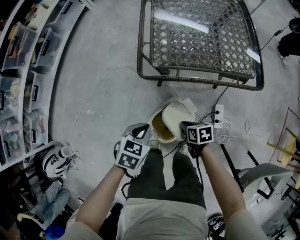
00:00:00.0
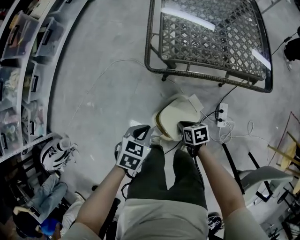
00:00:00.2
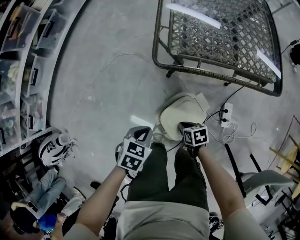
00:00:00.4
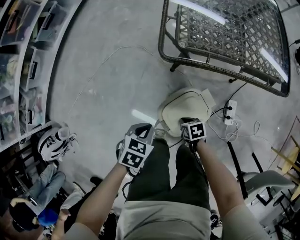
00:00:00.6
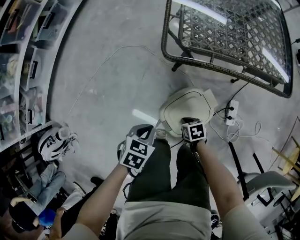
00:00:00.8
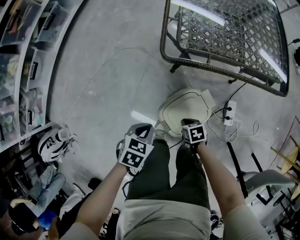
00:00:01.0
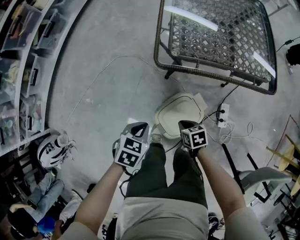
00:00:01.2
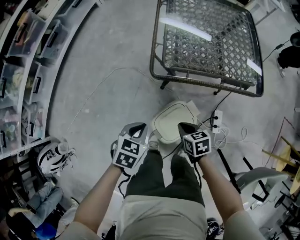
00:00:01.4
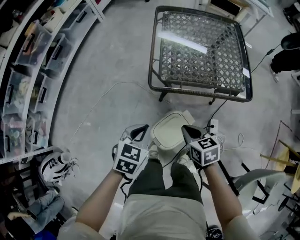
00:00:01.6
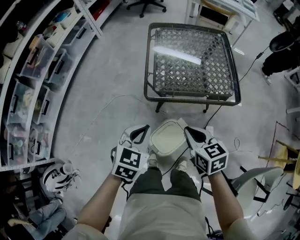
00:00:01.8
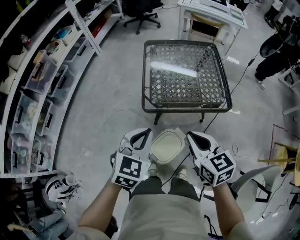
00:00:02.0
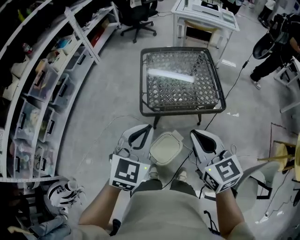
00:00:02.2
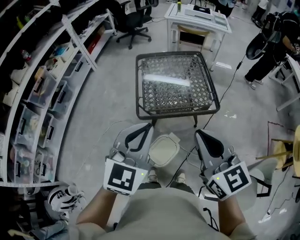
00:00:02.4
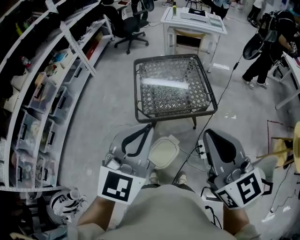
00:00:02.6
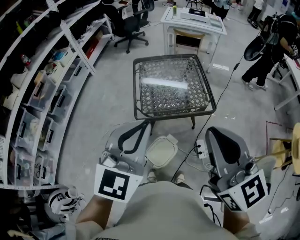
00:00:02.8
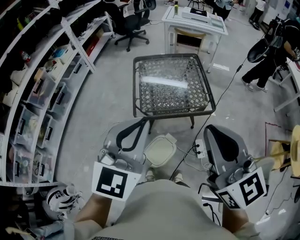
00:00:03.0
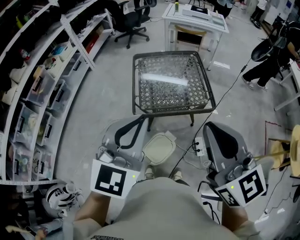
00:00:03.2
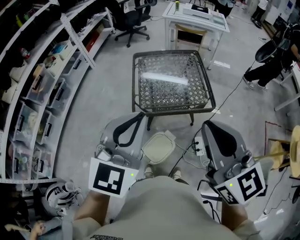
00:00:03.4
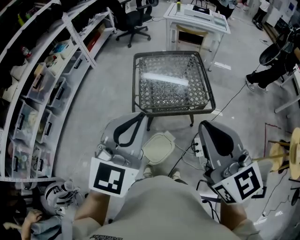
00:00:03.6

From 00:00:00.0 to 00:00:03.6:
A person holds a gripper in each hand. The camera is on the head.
From 00:00:00.0 to 00:00:01.8: The grippers both shift upward by about 25 cm. The left gripper rotates some 20 degrees; the right gripper turns by approximately 40 degrees.
From 00:00:01.8 to 00:00:03.6: The two grippers go roughly 35 cm upward. The left gripper angles its fingers upward, by roughly 30 degrees. The right gripper tips its fingers upward by approximately 30 degrees.

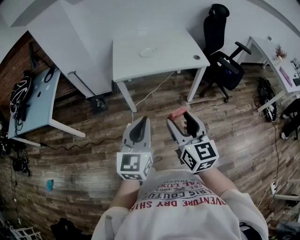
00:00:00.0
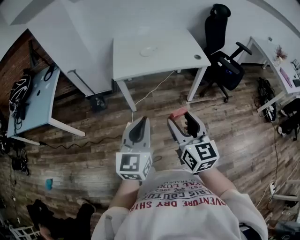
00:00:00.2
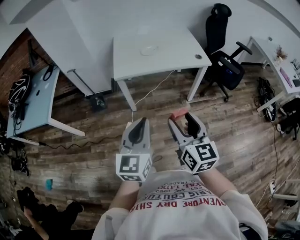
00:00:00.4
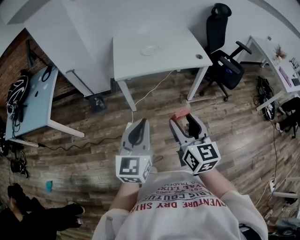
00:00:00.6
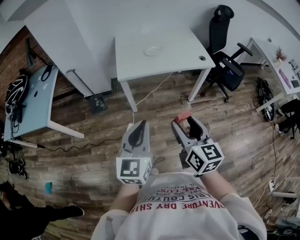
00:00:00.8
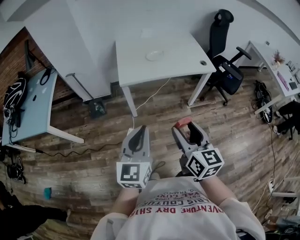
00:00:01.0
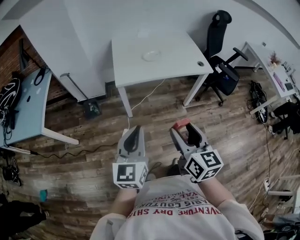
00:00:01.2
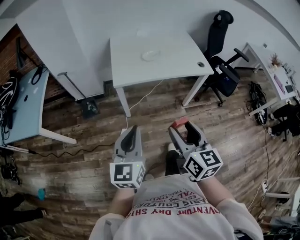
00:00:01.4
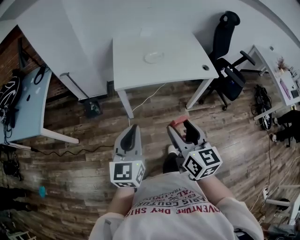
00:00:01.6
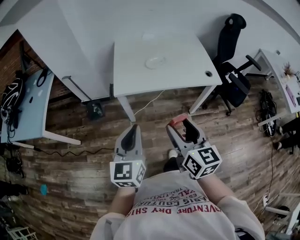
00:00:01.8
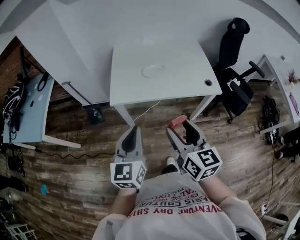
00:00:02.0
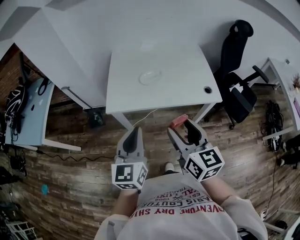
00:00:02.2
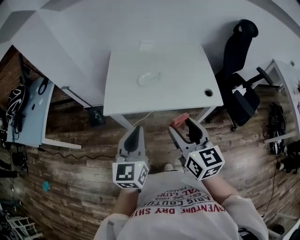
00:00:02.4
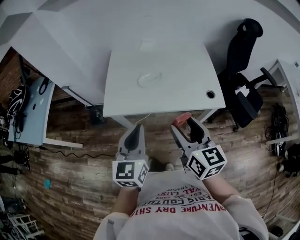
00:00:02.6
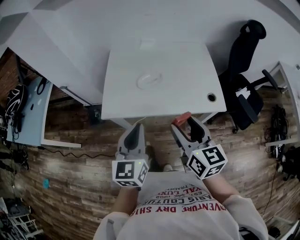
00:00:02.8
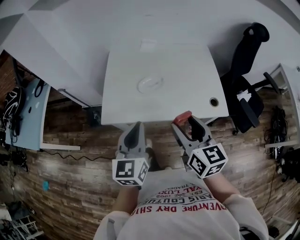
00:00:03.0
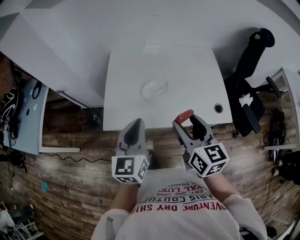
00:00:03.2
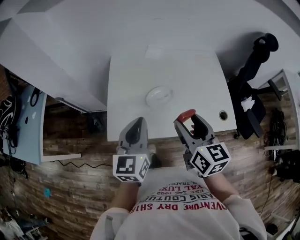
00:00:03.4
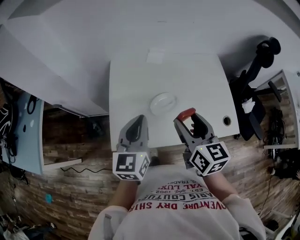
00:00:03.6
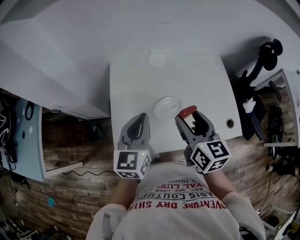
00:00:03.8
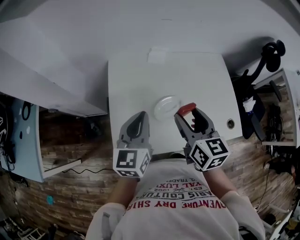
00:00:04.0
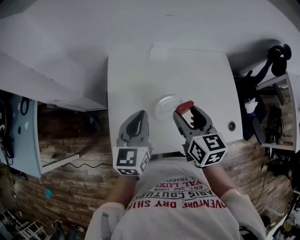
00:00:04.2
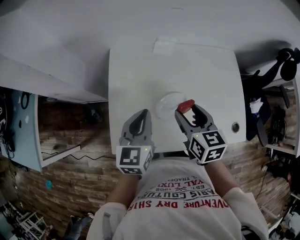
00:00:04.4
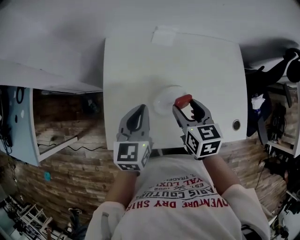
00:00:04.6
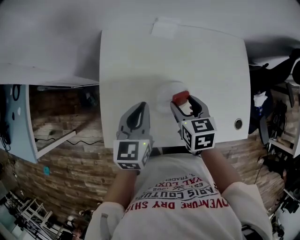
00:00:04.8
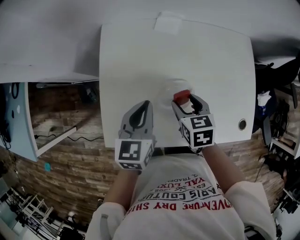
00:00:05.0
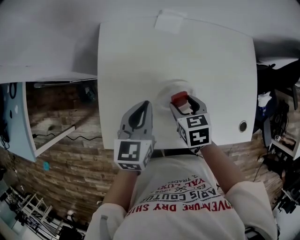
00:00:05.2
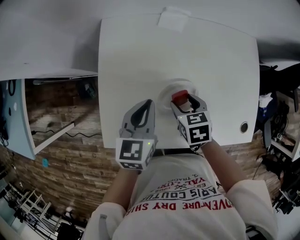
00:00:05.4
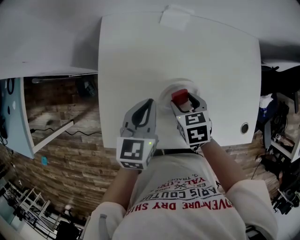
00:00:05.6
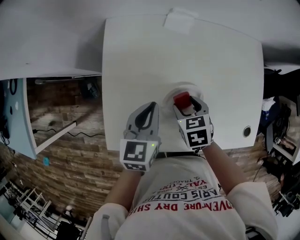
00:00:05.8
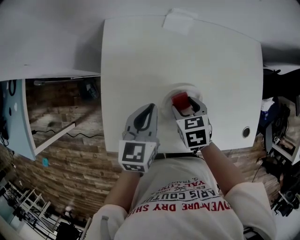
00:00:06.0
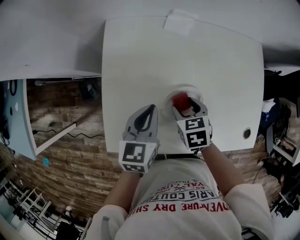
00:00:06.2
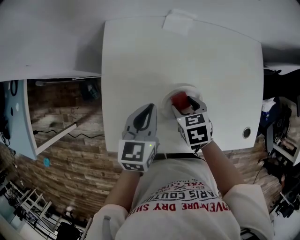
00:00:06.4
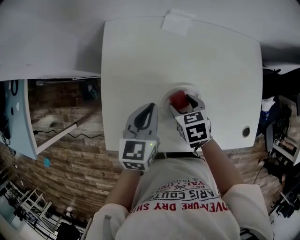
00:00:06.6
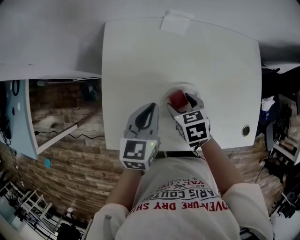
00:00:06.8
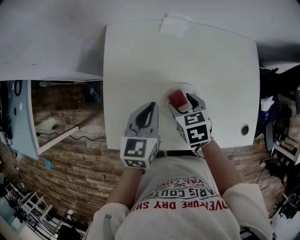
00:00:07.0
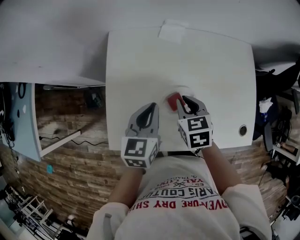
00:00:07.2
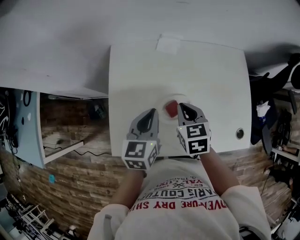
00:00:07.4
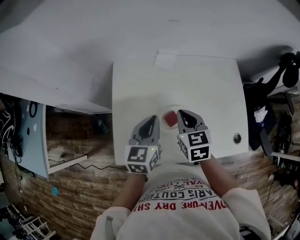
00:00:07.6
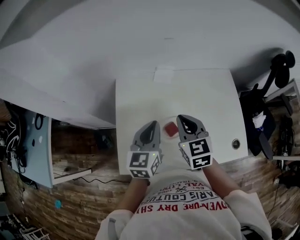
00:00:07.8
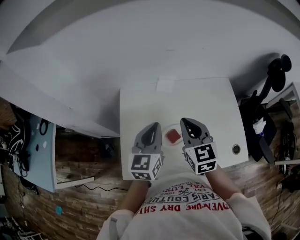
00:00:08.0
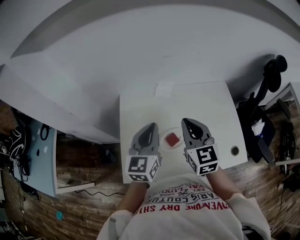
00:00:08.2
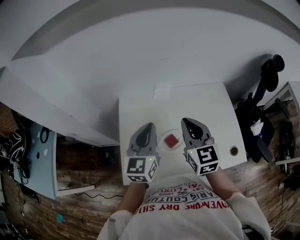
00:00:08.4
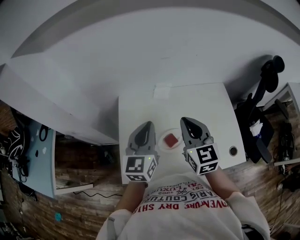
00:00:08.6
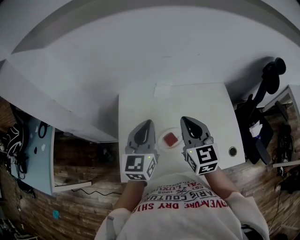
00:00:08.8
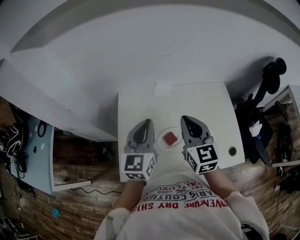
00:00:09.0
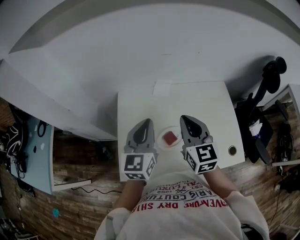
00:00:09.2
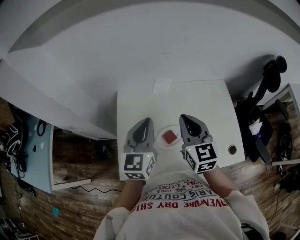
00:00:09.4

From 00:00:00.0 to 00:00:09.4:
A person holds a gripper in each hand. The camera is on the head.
From 00:00:00.0 to 00:00:01.6: The two grippers go roughly 15 cm forward and to the left.
From 00:00:01.6 to 00:00:03.2: The two grippers go some 35 cm forward and to the right.
From 00:00:03.2 to 00:00:04.8: Both grippers move forward and downward, approximately 30 cm. The right gripper points its fingers about 30 degrees further downward.
From 00:00:04.8 to 00:00:06.2: The right gripper moves downward, approximately 10 cm; the left gripper goes about 5 cm downward.
From 00:00:06.2 to 00:00:07.8: The right gripper travels upward by approximately 20 cm, tilts its fingers roughly 30 degrees upward, and closes up, while the left gripper travels upward by approximately 15 cm.
From 00:00:07.8 to 00:00:09.4: Both grippers travel together upward, about 10 cm.

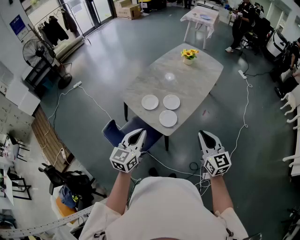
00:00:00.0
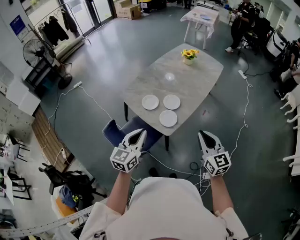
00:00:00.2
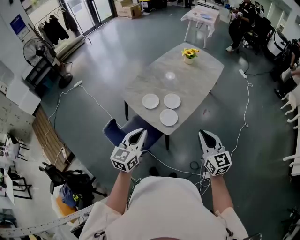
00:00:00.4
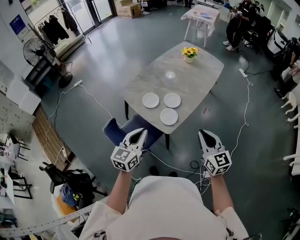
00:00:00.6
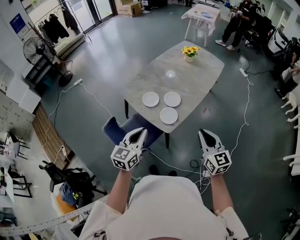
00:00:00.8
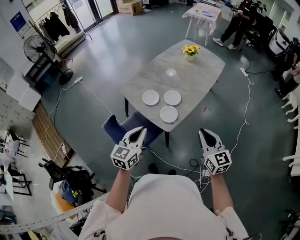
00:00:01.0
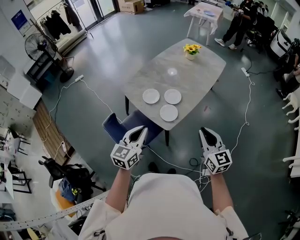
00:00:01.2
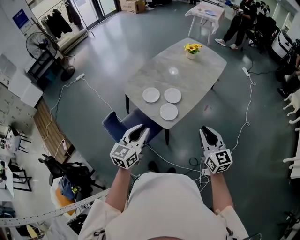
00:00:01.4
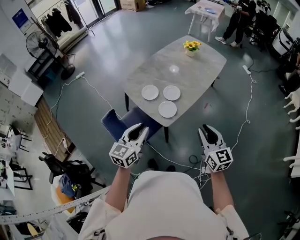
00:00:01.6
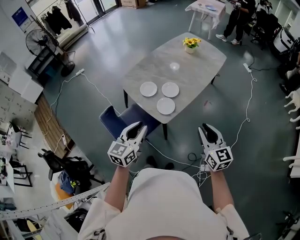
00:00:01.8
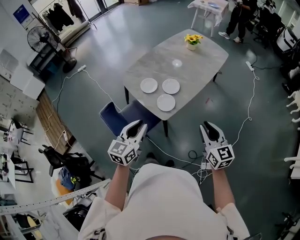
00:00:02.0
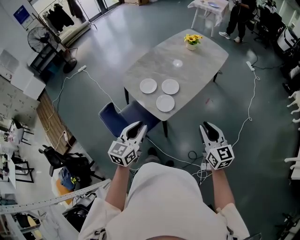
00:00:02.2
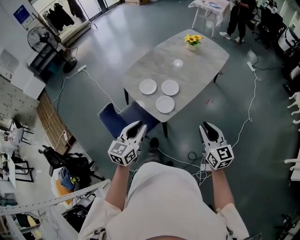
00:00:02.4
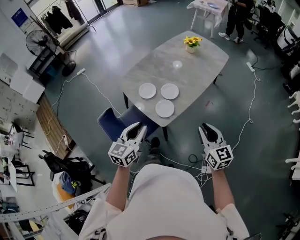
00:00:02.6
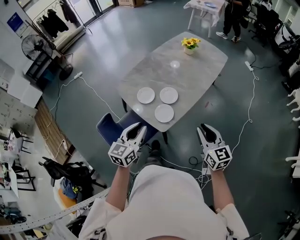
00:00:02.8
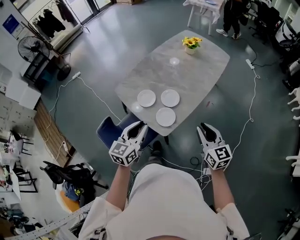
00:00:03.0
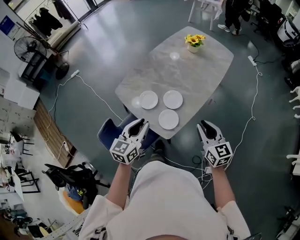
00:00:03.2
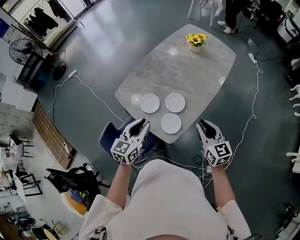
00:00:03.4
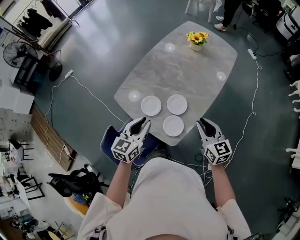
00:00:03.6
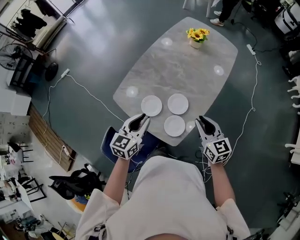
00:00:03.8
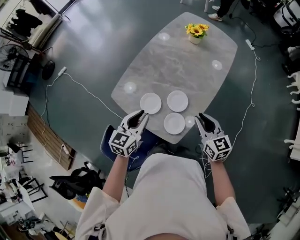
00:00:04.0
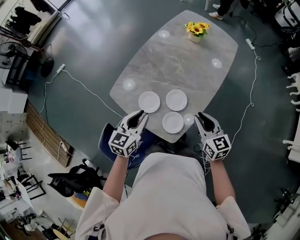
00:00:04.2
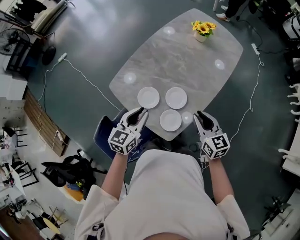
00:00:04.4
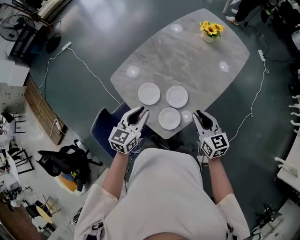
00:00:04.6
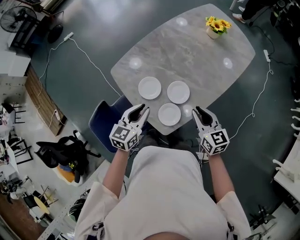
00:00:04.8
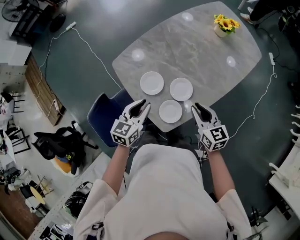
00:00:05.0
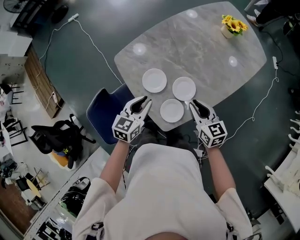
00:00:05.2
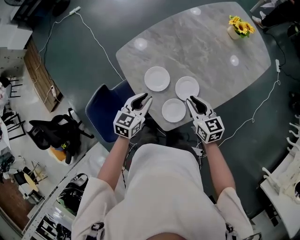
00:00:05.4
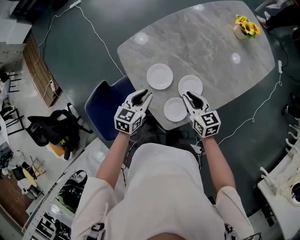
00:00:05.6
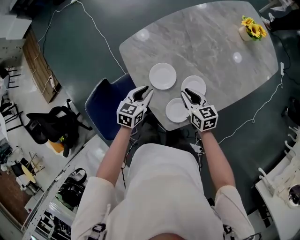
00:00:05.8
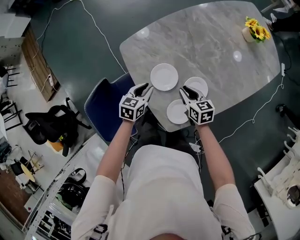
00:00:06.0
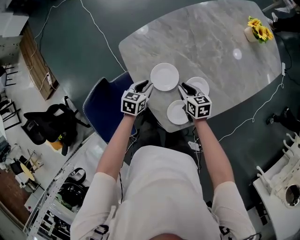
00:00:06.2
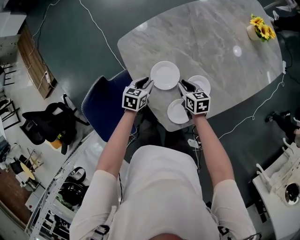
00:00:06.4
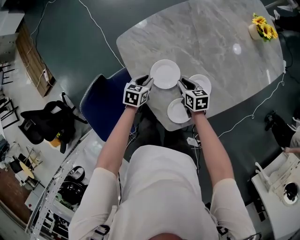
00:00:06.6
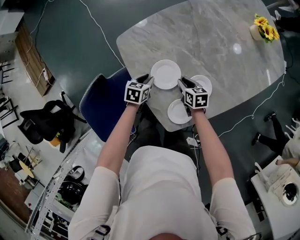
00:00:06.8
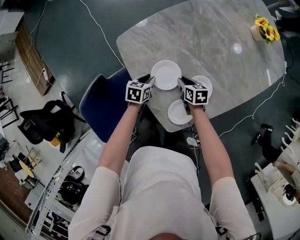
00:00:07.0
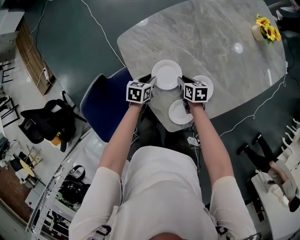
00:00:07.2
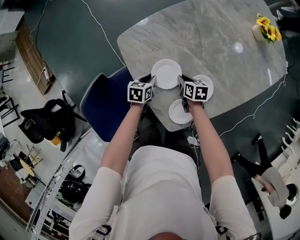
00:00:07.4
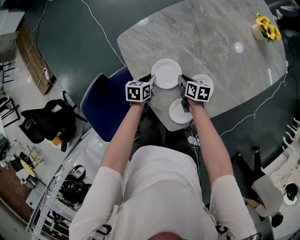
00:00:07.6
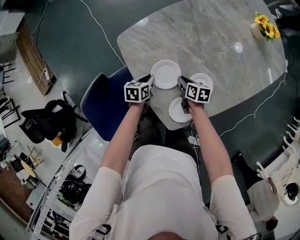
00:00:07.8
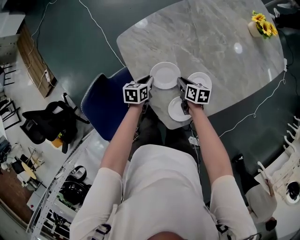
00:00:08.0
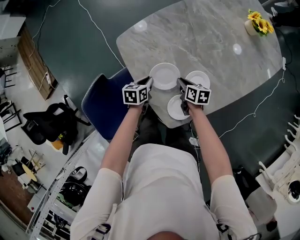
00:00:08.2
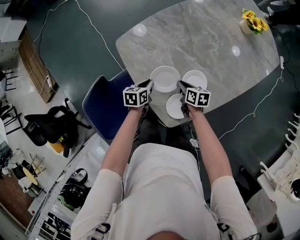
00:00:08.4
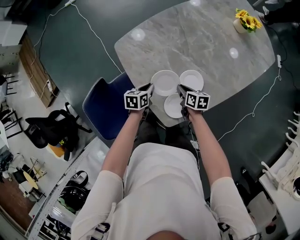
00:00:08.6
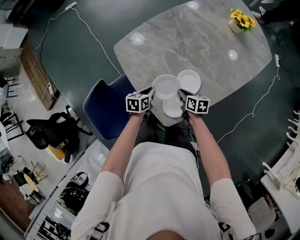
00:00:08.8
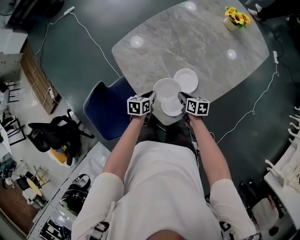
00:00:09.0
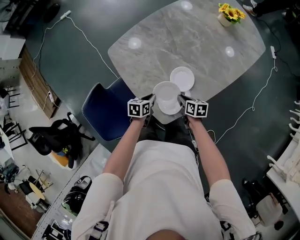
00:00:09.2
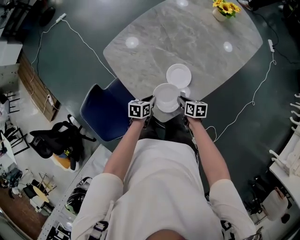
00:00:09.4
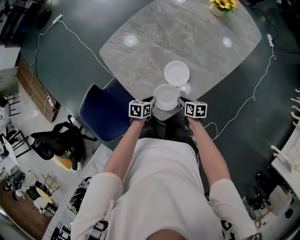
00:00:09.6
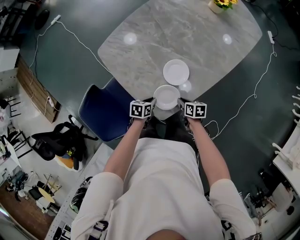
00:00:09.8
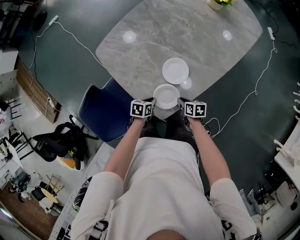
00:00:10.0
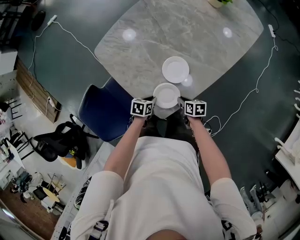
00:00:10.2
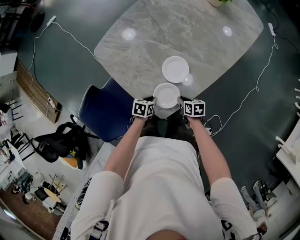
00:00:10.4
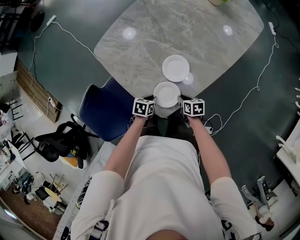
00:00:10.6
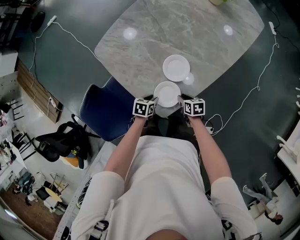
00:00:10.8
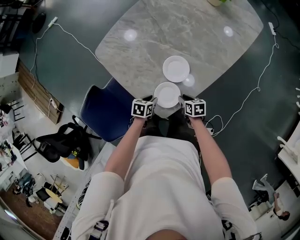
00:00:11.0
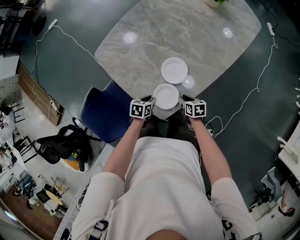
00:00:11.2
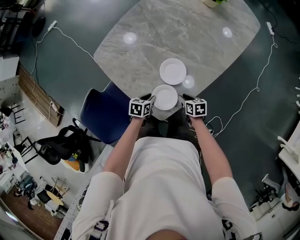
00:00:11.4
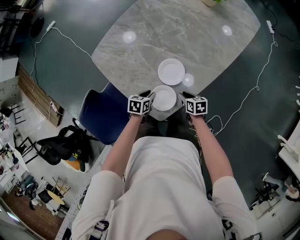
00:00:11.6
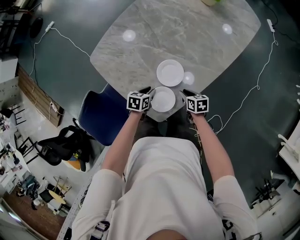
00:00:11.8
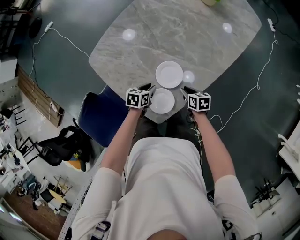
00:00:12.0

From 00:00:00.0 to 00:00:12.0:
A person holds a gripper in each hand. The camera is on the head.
From 00:00:00.0 to 00:00:01.6: The left gripper opens.
From 00:00:01.6 to 00:00:03.0: Both grippers travel together forward, roughly 15 cm.
From 00:00:03.0 to 00:00:04.4: The left gripper is displaced forward by approximately 20 cm. Meanwhile the right gripper is displaced forward and to the left by approximately 25 cm.
From 00:00:04.4 to 00:00:06.0: The left gripper travels downward by about 25 cm, and turns by roughly 30 degrees. Meanwhile the right gripper heads downward, to the left and forward, covering approximately 30 cm, and swivels about 30 degrees.
From 00:00:06.0 to 00:00:07.6: Both grippers travel together downward, roughly 10 cm. The right gripper swivels roughly 20 degrees.
From 00:00:07.6 to 00:00:09.0: Both grippers move backward, upward and to the right, some 15 cm.
From 00:00:09.0 to 00:00:10.4: The left gripper shifts by approximately 10 cm, and swivels about 20 degrees. The right gripper changes place by some 10 cm.
From 00:00:10.4 to 00:00:12.0: The right gripper ends up approximately 10 cm from where it was. Meanwhile the left gripper moves approximately 10 cm.
